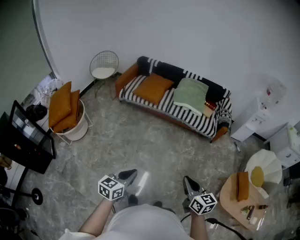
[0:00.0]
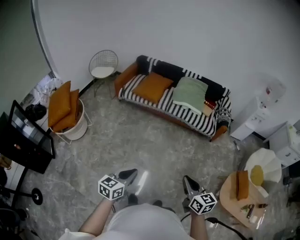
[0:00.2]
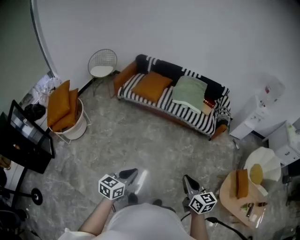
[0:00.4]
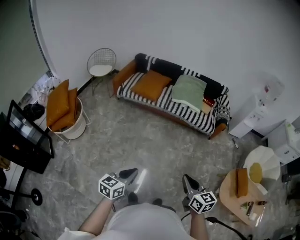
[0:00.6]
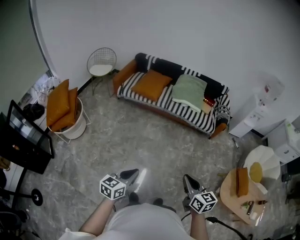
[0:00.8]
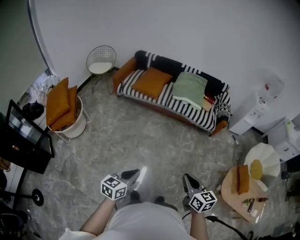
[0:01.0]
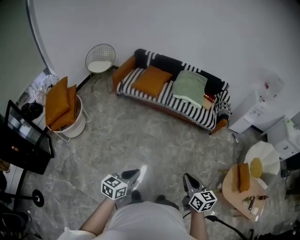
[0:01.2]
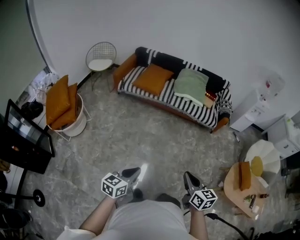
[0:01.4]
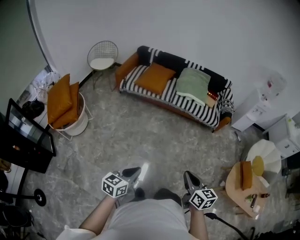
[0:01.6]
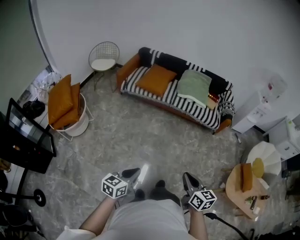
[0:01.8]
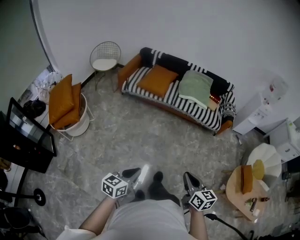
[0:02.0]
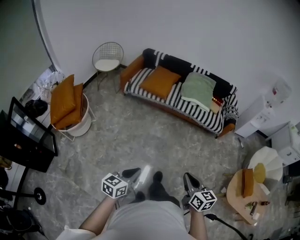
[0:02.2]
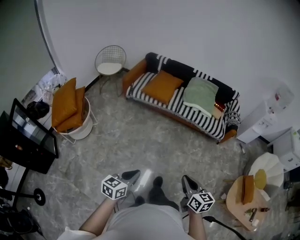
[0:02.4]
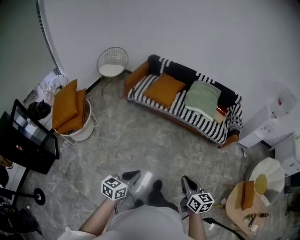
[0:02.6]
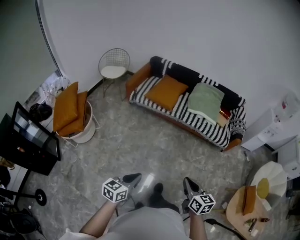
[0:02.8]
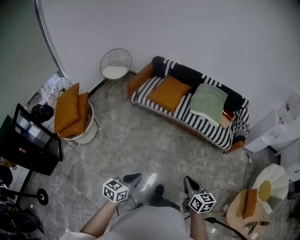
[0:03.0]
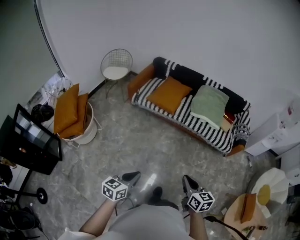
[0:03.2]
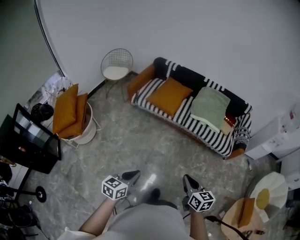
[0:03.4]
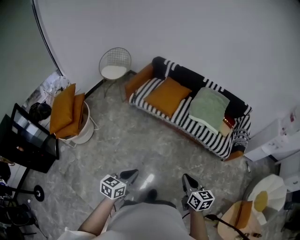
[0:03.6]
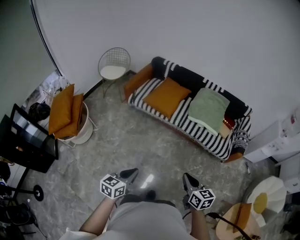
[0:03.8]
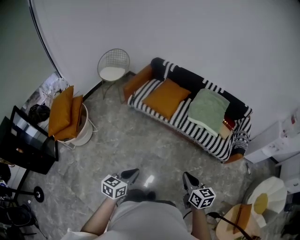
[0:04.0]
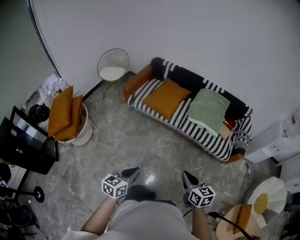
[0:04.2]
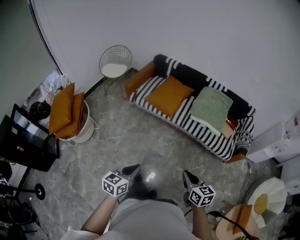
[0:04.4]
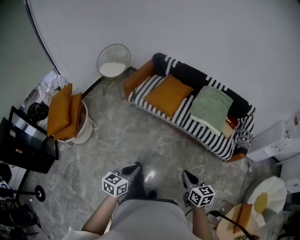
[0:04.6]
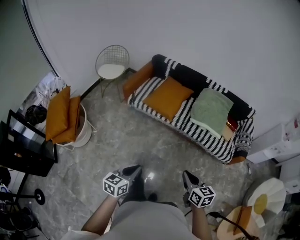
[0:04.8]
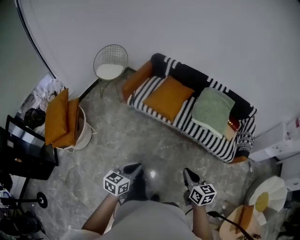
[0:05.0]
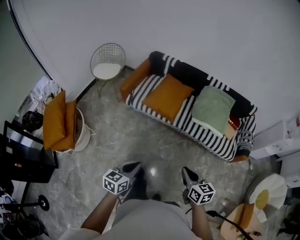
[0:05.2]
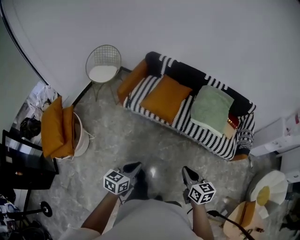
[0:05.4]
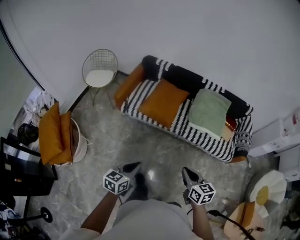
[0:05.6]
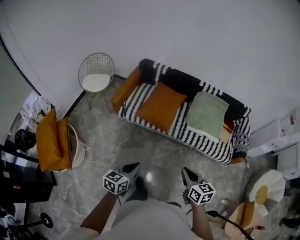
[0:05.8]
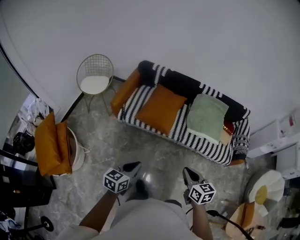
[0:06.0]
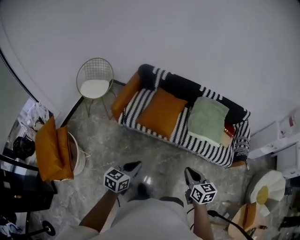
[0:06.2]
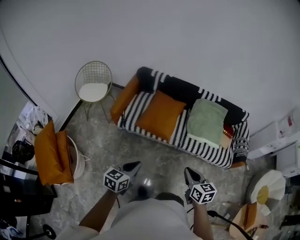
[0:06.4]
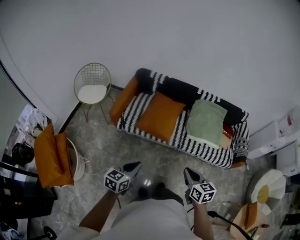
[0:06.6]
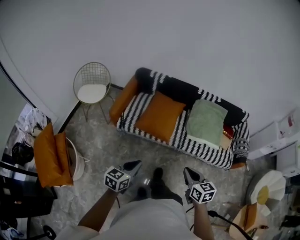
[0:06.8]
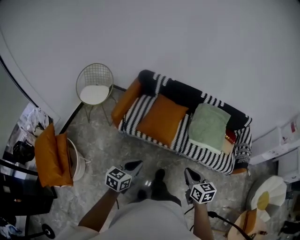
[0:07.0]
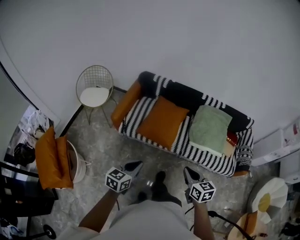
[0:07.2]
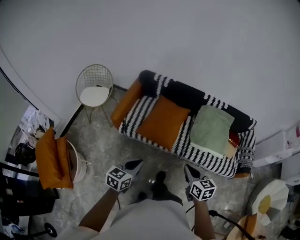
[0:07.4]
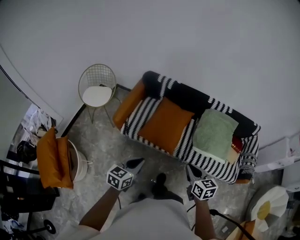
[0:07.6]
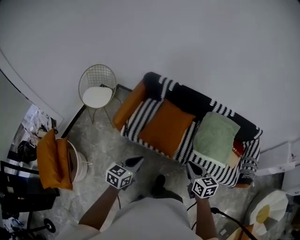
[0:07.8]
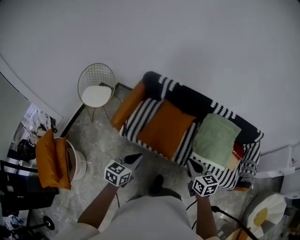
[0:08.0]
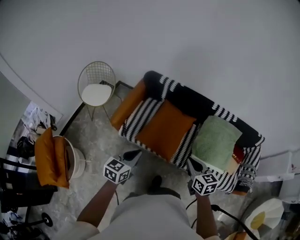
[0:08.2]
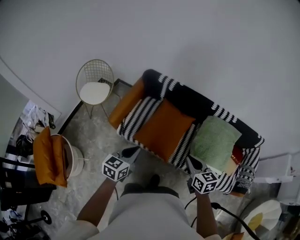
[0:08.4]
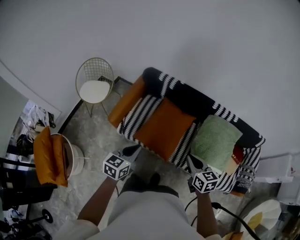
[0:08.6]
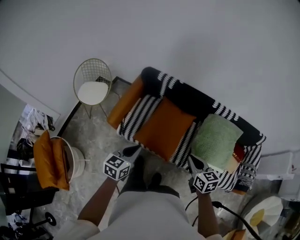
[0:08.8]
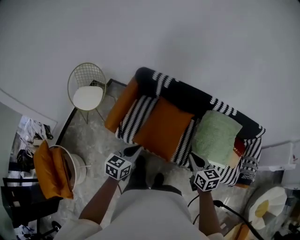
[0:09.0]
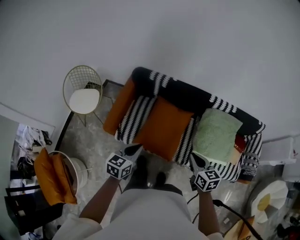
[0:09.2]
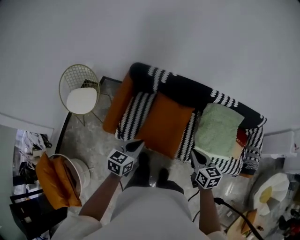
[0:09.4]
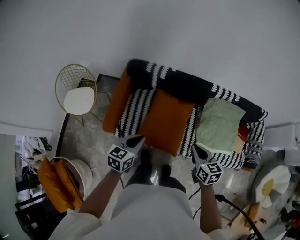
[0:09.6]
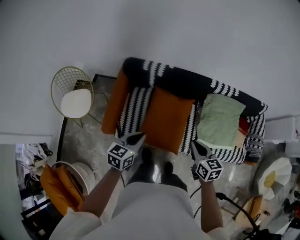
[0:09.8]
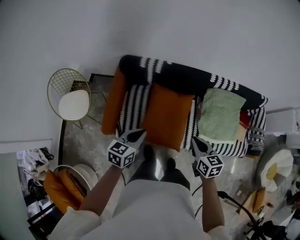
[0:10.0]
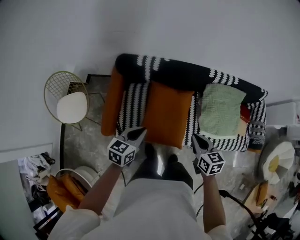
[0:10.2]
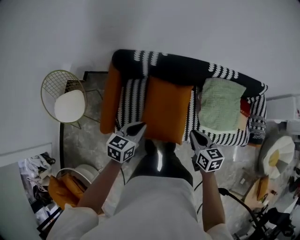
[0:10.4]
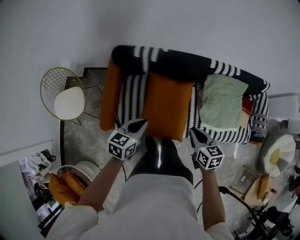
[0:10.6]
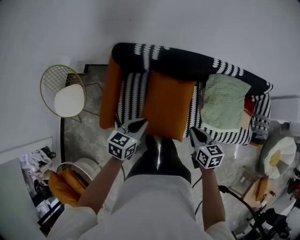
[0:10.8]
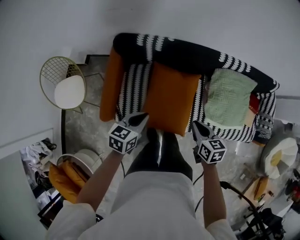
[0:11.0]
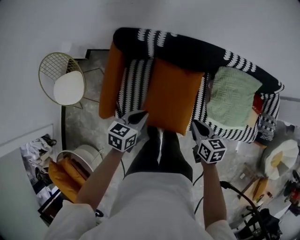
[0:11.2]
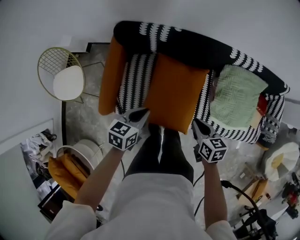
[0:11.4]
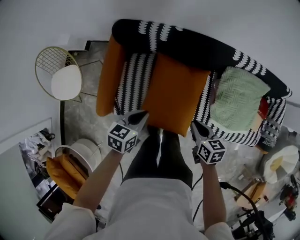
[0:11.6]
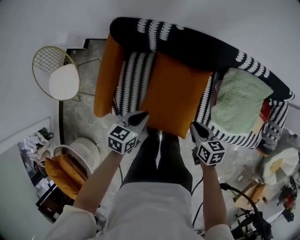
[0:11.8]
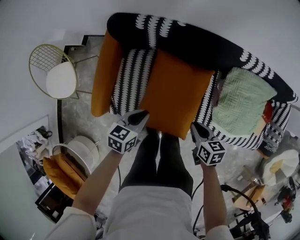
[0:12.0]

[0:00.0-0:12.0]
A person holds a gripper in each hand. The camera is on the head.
0:00.0 to 0:01.6: Both grippers travel together to the left, approximately 10 cm.
0:01.6 to 0:03.0: Both grippers move forward, about 20 cm.
0:03.0 to 0:04.4: The two grippers go roughly 20 cm forward.
0:04.4 to 0:06.0: Both grippers move forward and to the left, some 35 cm.
0:06.0 to 0:07.6: Both grippers travel together forward, roughly 25 cm.
0:07.6 to 0:09.0: The two grippers go some 25 cm forward.
0:09.0 to 0:10.4: Both grippers move forward, to the left and downward, roughly 25 cm.
0:10.4 to 0:12.0: The grippers both shift downward and forward by about 25 cm.

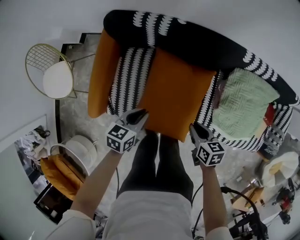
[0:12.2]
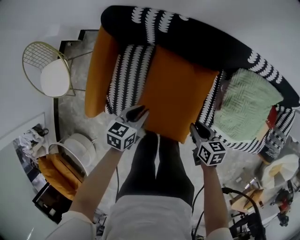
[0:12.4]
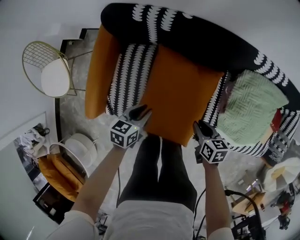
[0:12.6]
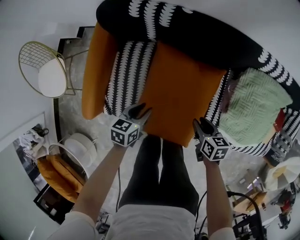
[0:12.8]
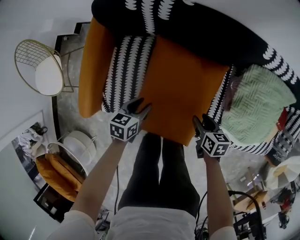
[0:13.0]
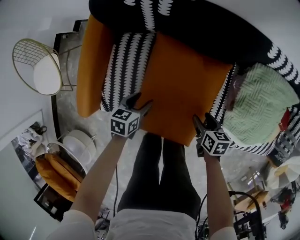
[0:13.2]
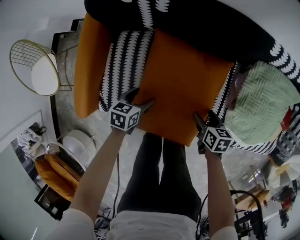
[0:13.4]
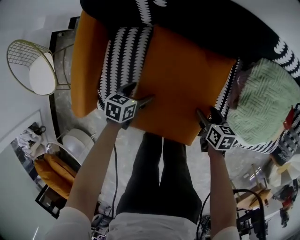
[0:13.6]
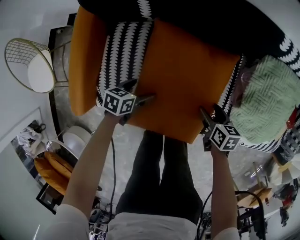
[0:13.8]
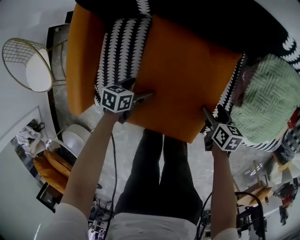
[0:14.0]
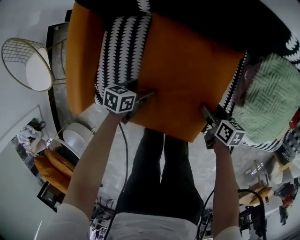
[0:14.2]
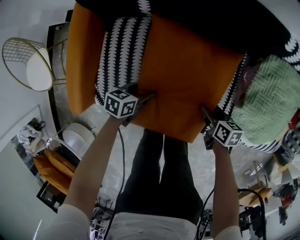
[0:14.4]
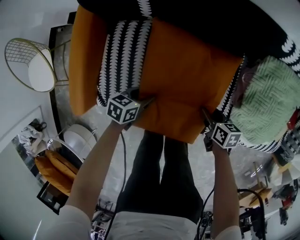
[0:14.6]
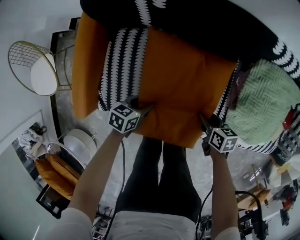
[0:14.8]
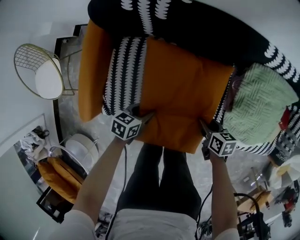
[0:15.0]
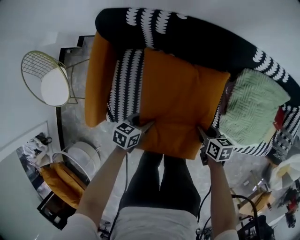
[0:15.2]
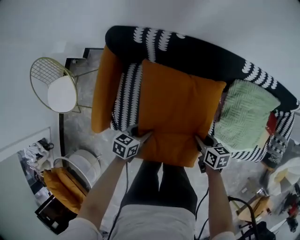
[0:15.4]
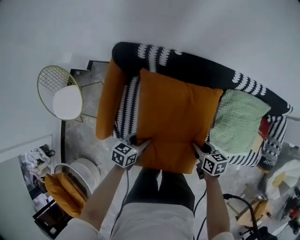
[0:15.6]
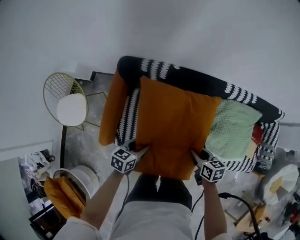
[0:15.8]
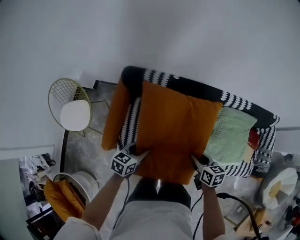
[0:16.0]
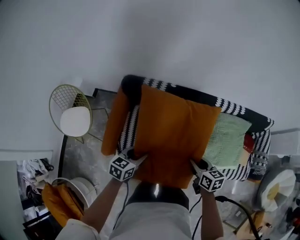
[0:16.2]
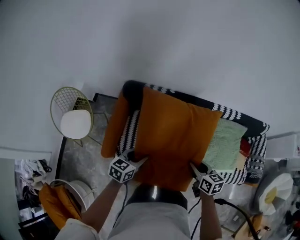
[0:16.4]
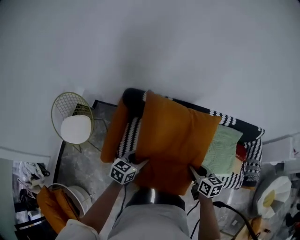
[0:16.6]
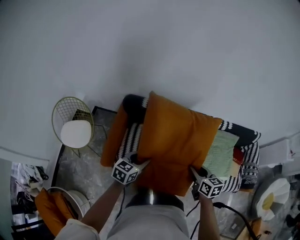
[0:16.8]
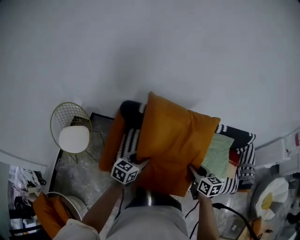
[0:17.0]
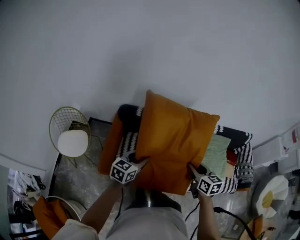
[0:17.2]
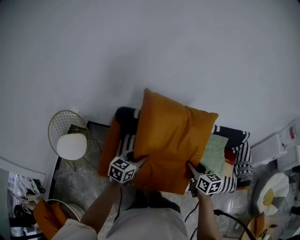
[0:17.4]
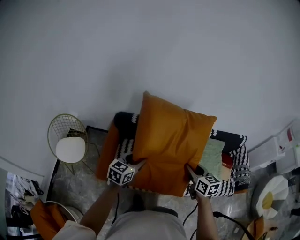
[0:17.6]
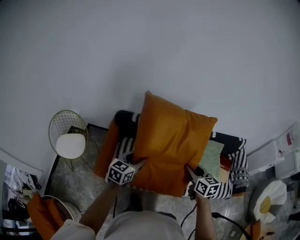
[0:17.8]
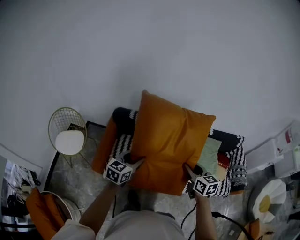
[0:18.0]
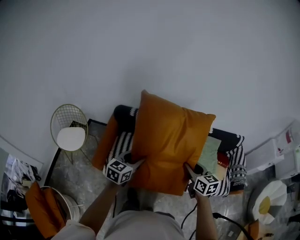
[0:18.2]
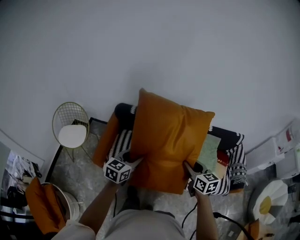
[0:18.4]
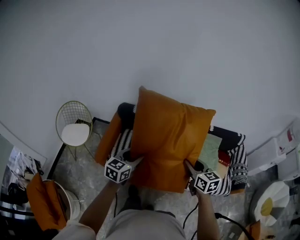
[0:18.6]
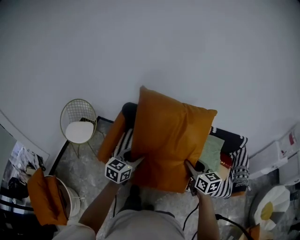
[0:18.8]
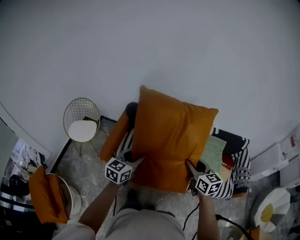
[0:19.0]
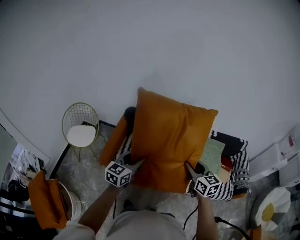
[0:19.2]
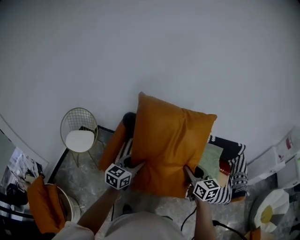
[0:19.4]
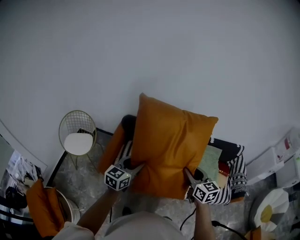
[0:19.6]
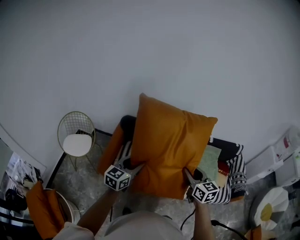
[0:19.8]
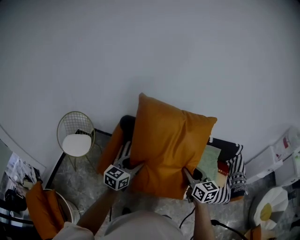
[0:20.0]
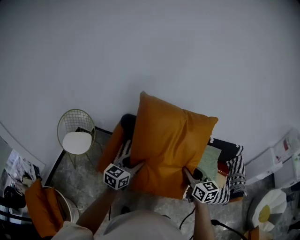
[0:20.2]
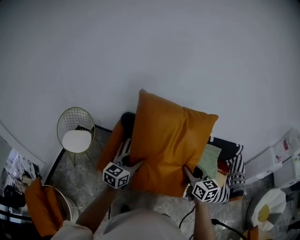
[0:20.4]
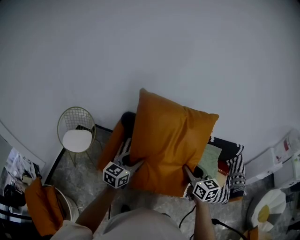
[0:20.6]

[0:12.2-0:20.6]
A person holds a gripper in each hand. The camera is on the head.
0:12.2 to 0:13.6: Both grippers travel together downward, approximately 25 cm. The right gripper opens up. The left gripper opens its fingers.
0:13.6 to 0:15.0: Both grippers travel together upward, roughly 5 cm. The right gripper closes up. Meanwhile the left gripper closes up.
0:15.0 to 0:16.4: The two grippers go approximately 50 cm upward. The left gripper changes its angle by approximately 20 degrees, while the right gripper rotates approximately 20 degrees.
0:16.4 to 0:17.8: Both grippers travel together upward and backward, some 20 cm.
0:17.8 to 0:19.2: The right gripper goes about 15 cm backward and upward; the left gripper moves backward, roughly 20 cm.
0:19.2 to 0:20.6: The left gripper shifts by some 5 cm. The right gripper moves some 5 cm.

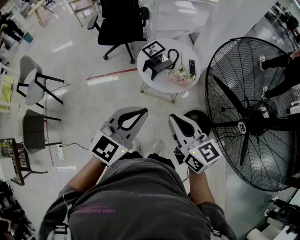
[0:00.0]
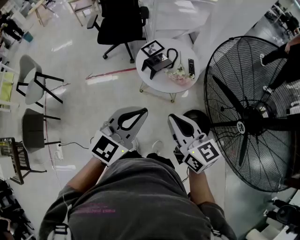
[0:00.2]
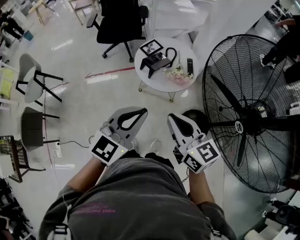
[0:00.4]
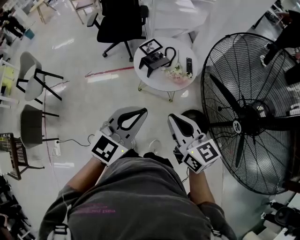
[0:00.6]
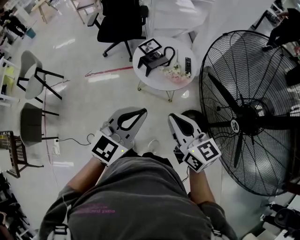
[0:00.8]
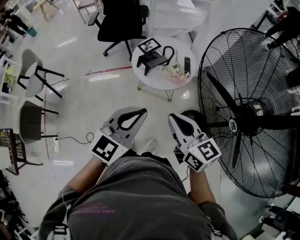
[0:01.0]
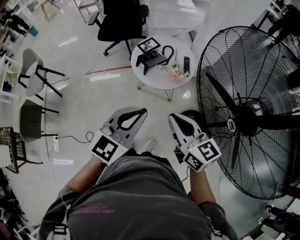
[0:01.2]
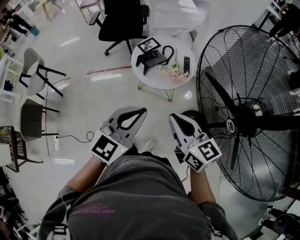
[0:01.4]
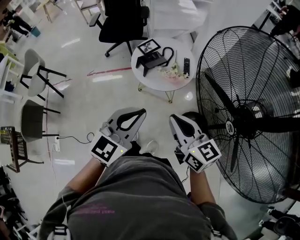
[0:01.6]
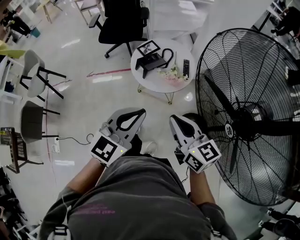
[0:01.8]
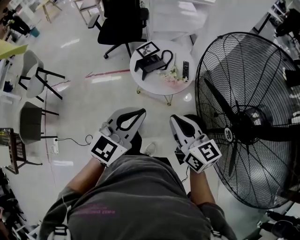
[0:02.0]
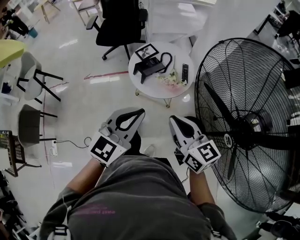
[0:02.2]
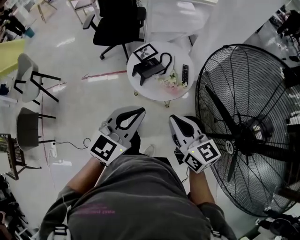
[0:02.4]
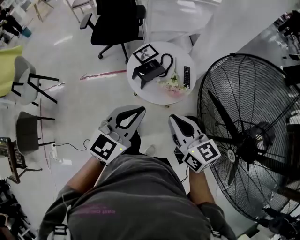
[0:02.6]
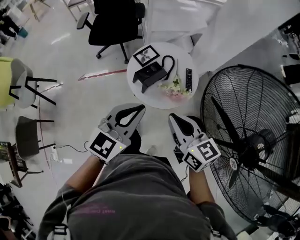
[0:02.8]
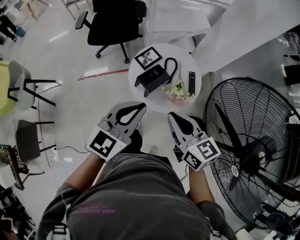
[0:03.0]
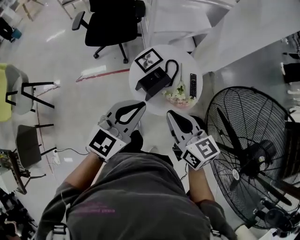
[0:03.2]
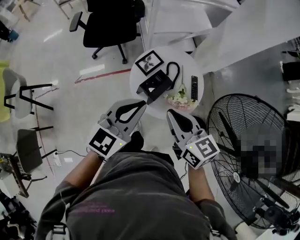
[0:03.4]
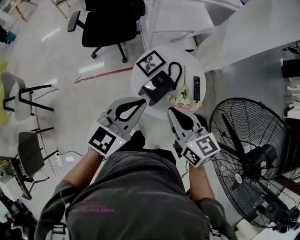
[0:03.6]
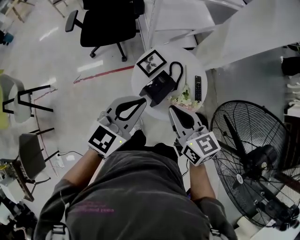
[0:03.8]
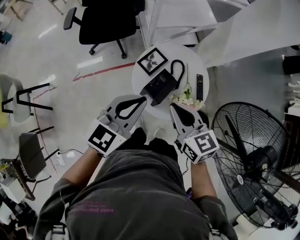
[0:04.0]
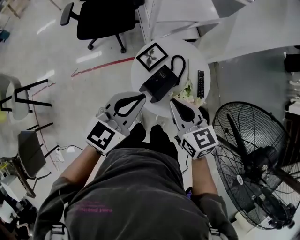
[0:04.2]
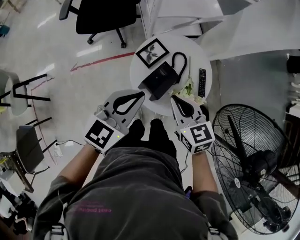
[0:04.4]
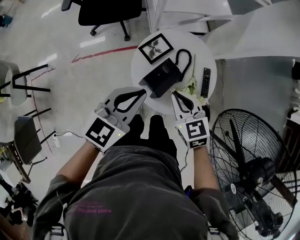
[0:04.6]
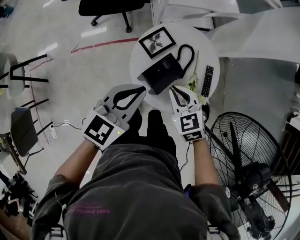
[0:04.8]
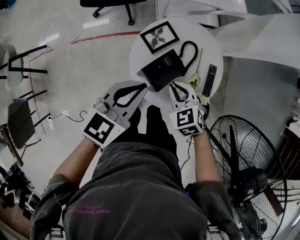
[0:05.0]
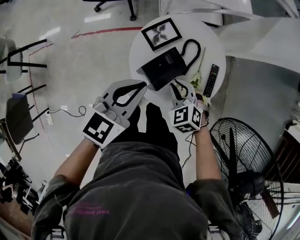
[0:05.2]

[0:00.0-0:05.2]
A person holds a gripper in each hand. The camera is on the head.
0:00.0 to 0:01.8: Both grippers travel together to the right, about 10 cm.
0:01.8 to 0:03.4: The right gripper travels forward and to the left by approximately 30 cm. The left gripper shifts approximately 30 cm forward.
0:03.4 to 0:05.2: The left gripper goes about 15 cm downward and forward, while the right gripper goes approximately 25 cm downward, and points its fingers about 40 degrees further downward.
